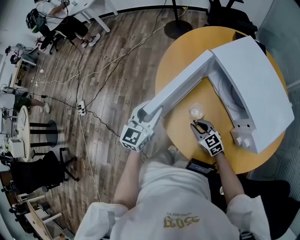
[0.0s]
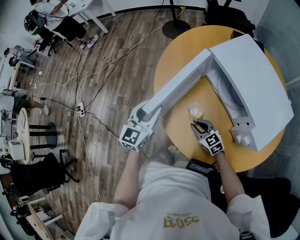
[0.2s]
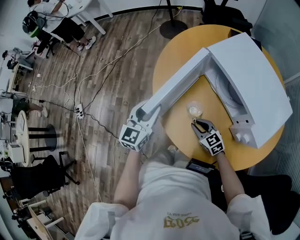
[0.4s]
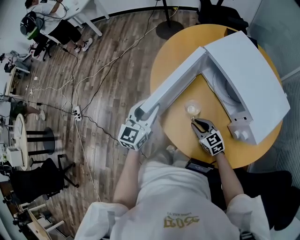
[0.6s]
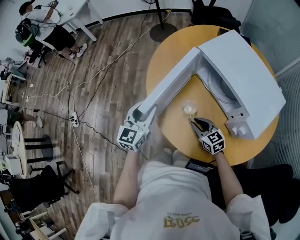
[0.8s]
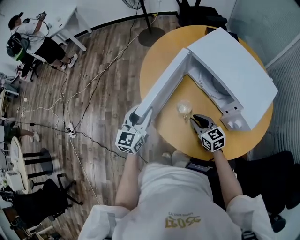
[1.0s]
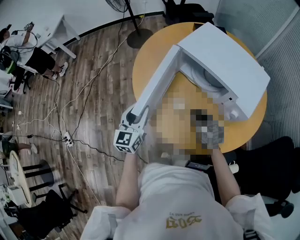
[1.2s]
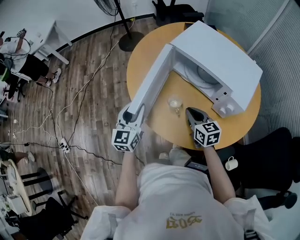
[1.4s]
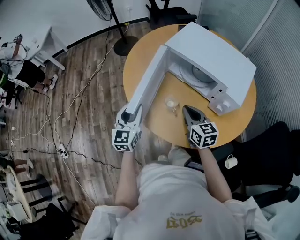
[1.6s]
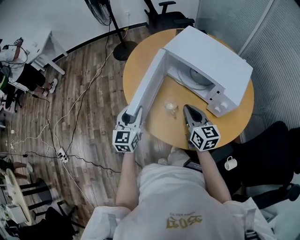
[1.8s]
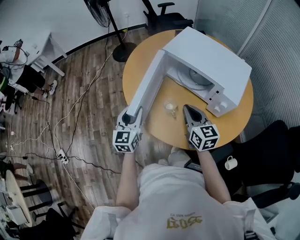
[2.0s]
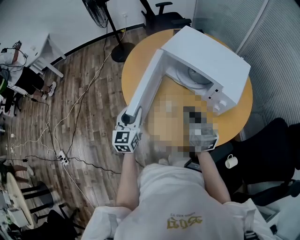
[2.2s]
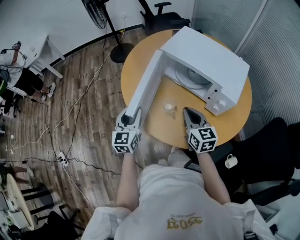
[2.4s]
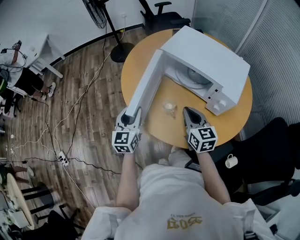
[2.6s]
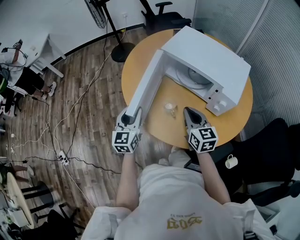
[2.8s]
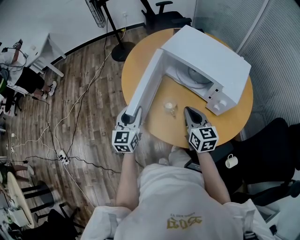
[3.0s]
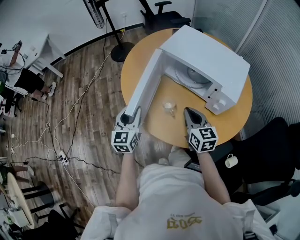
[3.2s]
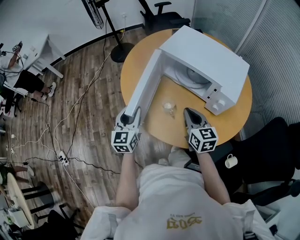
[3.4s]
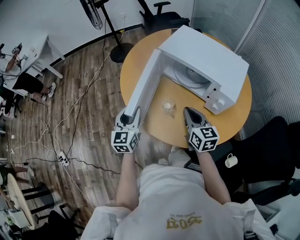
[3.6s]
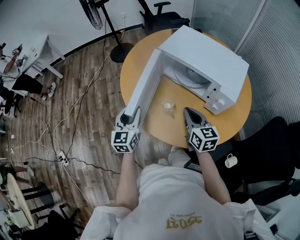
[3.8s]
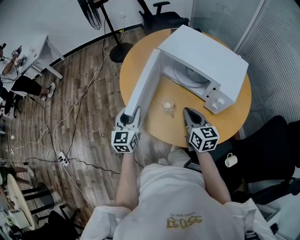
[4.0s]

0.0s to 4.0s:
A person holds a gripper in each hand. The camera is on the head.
0.0s to 1.4s: The right gripper moves upward, some 10 cm, and swivels roughly 40 degrees.
1.4s to 2.6s: The right gripper travels upward by roughly 5 cm.
2.6s to 4.0s: The grippers move only a little.

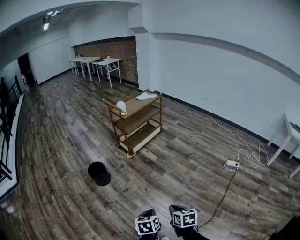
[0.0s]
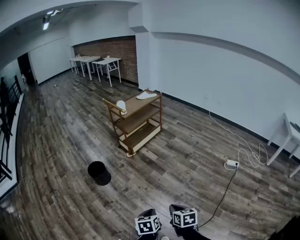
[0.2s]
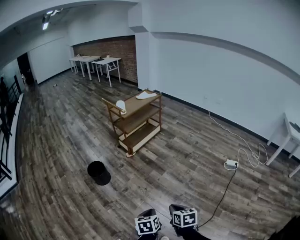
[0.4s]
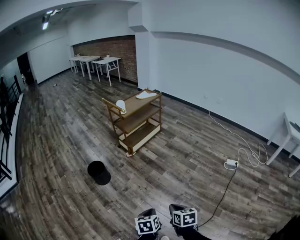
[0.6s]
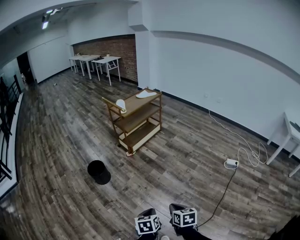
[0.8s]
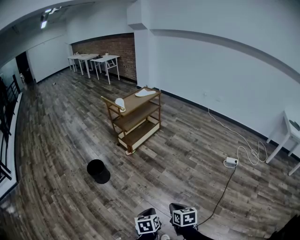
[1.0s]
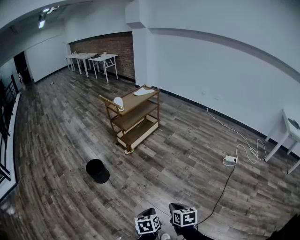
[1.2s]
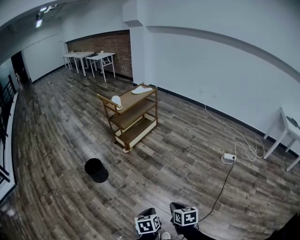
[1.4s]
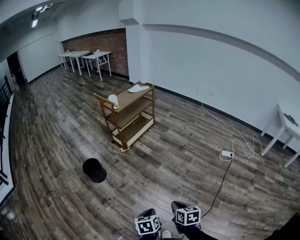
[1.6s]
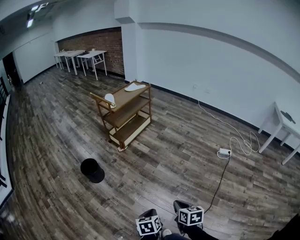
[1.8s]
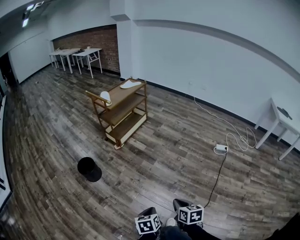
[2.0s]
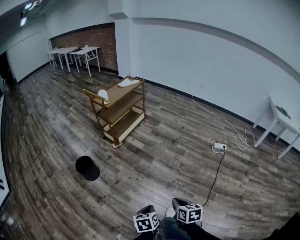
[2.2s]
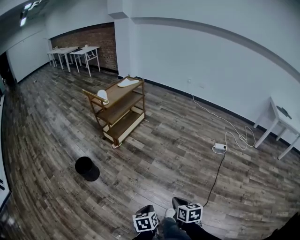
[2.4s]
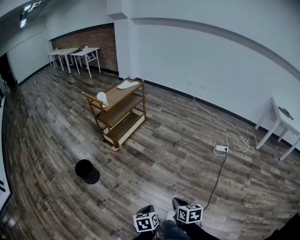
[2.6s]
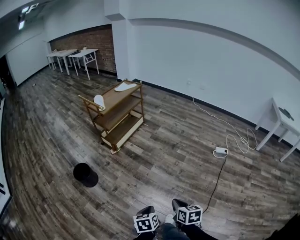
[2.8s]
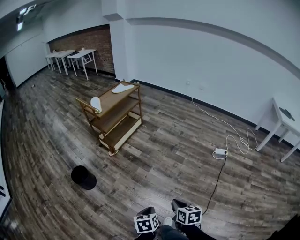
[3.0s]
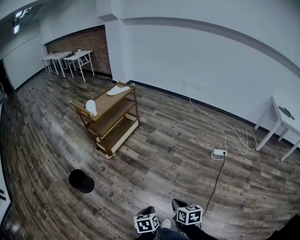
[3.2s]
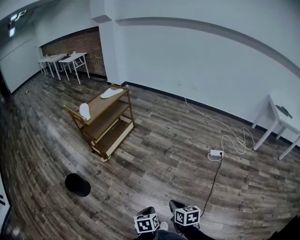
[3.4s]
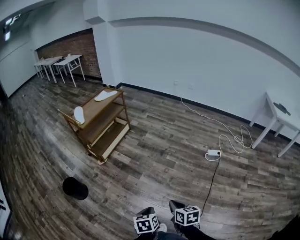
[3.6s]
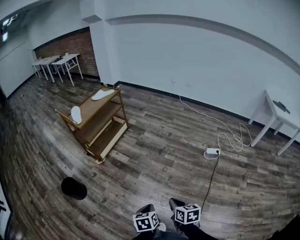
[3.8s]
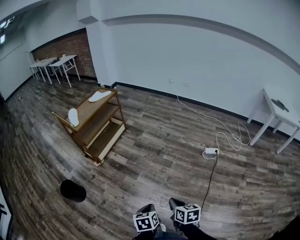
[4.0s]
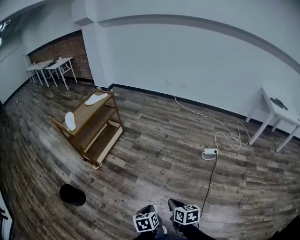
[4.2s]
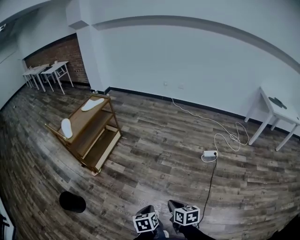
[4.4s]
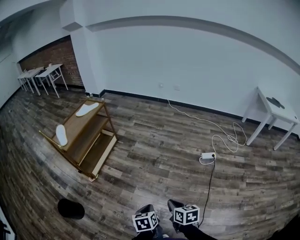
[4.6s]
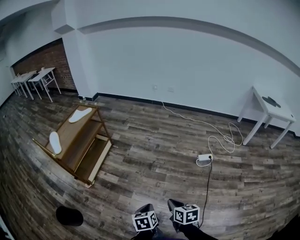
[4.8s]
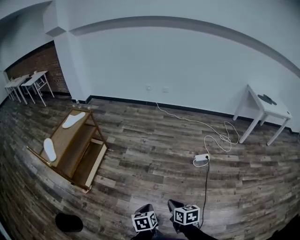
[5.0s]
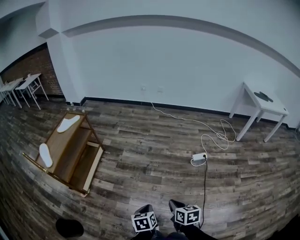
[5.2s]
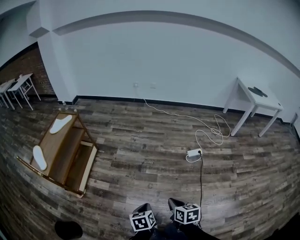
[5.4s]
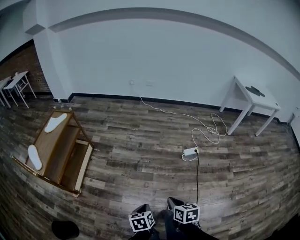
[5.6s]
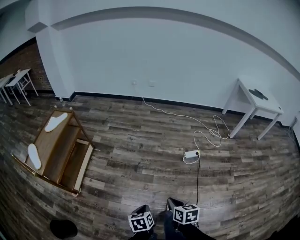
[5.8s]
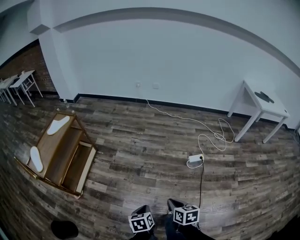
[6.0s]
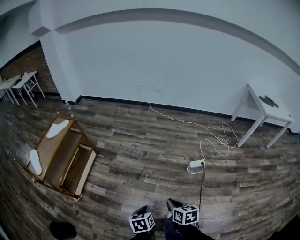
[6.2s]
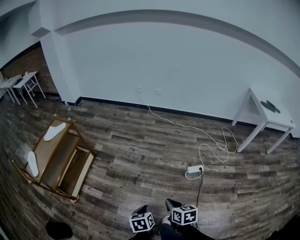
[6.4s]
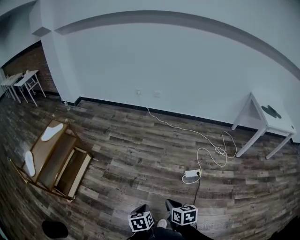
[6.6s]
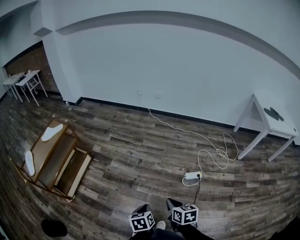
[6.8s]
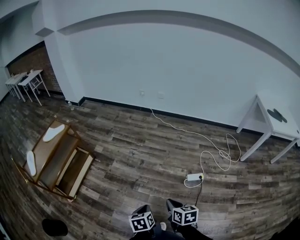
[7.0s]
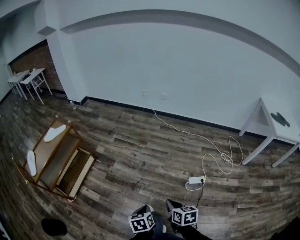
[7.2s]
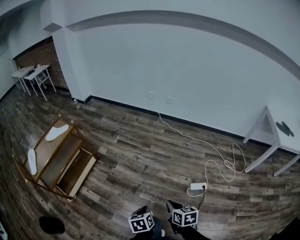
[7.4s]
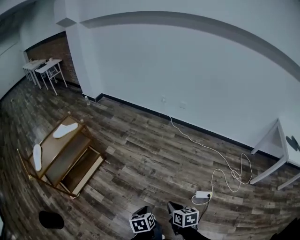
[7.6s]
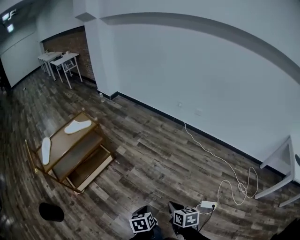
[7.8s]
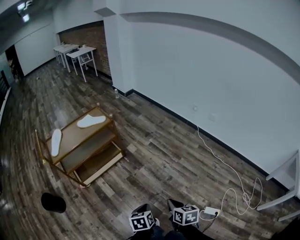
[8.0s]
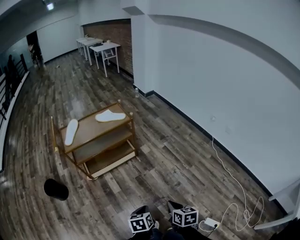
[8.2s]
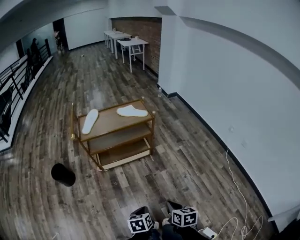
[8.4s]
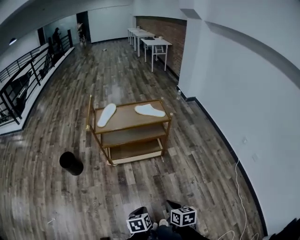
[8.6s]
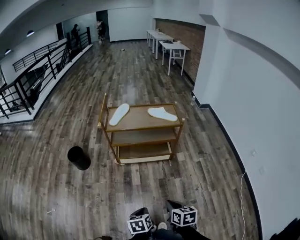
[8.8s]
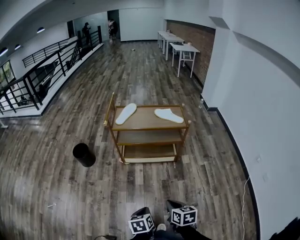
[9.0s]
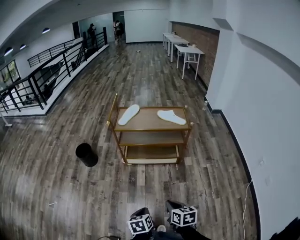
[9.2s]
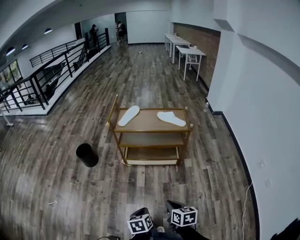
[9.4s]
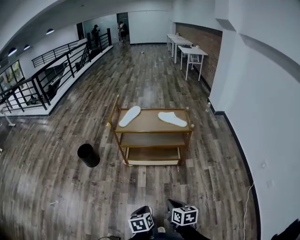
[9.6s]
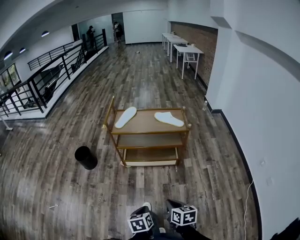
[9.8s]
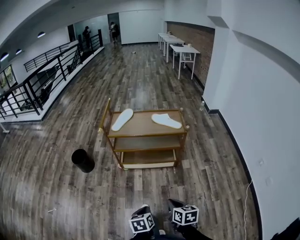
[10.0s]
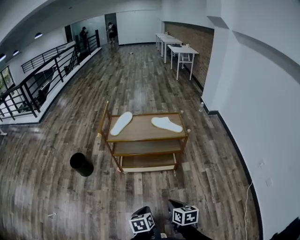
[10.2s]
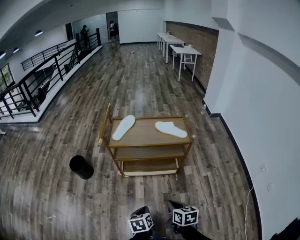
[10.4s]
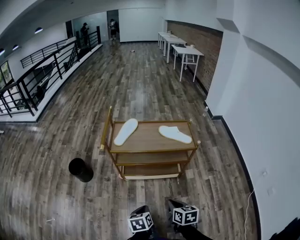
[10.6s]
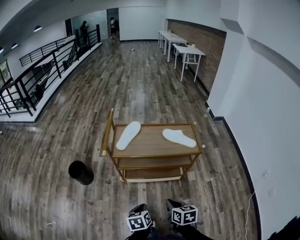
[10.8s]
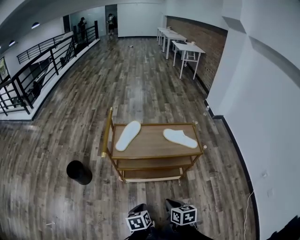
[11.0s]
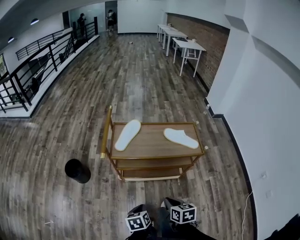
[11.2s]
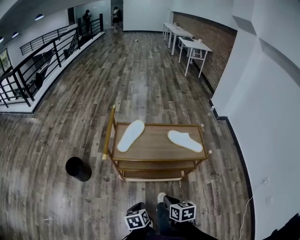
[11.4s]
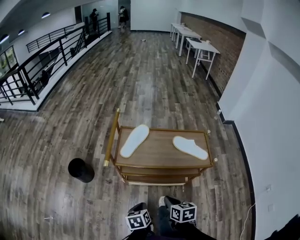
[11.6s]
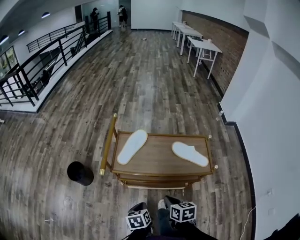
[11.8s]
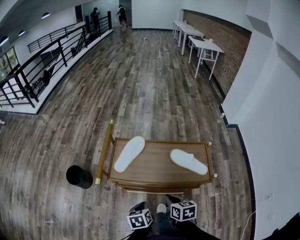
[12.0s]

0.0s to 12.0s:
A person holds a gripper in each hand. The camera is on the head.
0.0s to 1.6s: The grippers make only small movements.
1.6s to 3.0s: The two grippers go about 10 cm forward and to the right.
3.0s to 4.4s: Both grippers travel together forward and to the right, approximately 20 cm.
4.4s to 6.0s: Both grippers move forward, about 20 cm.
6.0s to 7.6s: The right gripper travels forward by approximately 30 cm, while the left gripper heads forward and to the right, covering some 30 cm.
7.6s to 9.0s: The left gripper moves about 20 cm, and changes its angle by approximately 60 degrees, while the right gripper shifts by about 30 cm, and rotates approximately 60 degrees.
9.0s to 10.4s: The grippers both shift forward by some 15 cm.
10.4s to 12.0s: The grippers both shift forward by roughly 35 cm.

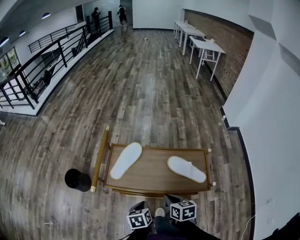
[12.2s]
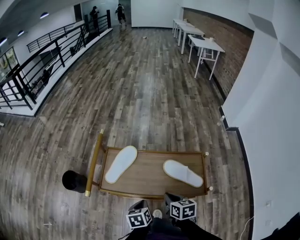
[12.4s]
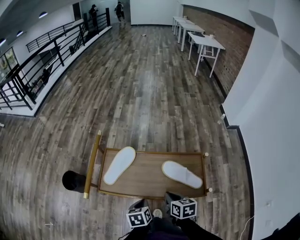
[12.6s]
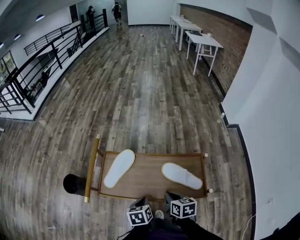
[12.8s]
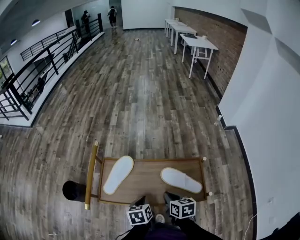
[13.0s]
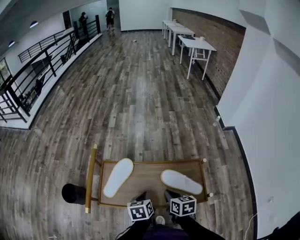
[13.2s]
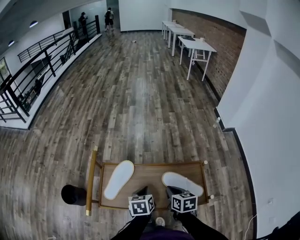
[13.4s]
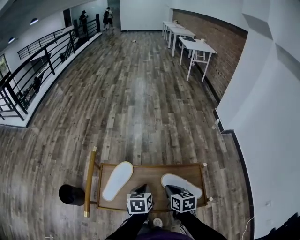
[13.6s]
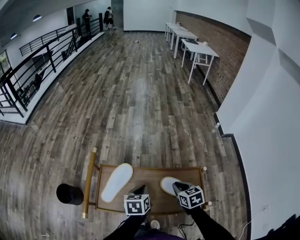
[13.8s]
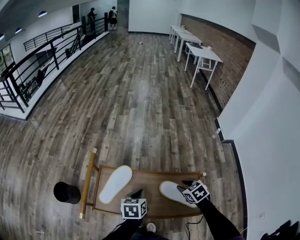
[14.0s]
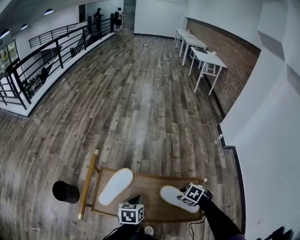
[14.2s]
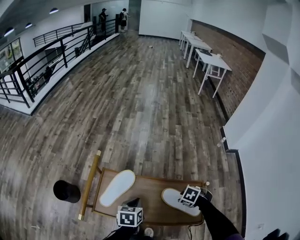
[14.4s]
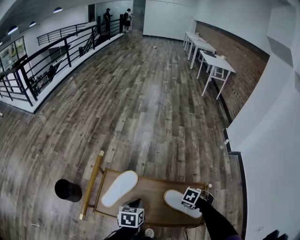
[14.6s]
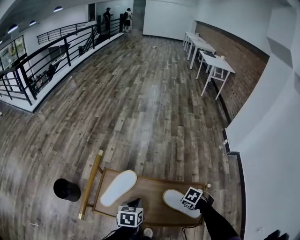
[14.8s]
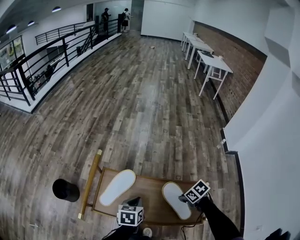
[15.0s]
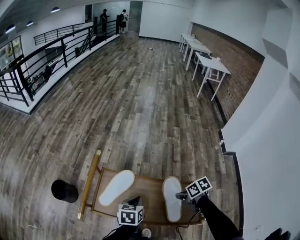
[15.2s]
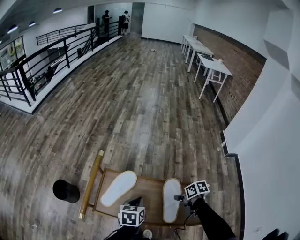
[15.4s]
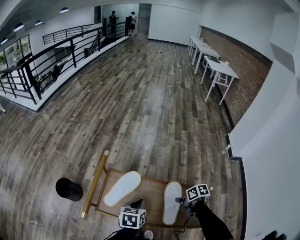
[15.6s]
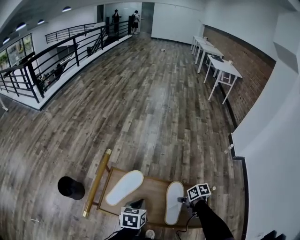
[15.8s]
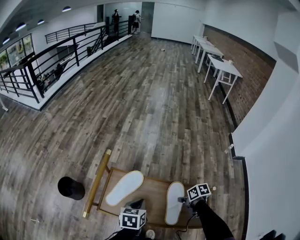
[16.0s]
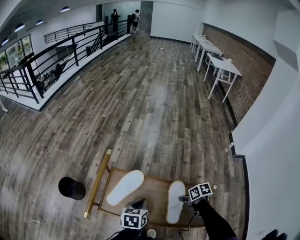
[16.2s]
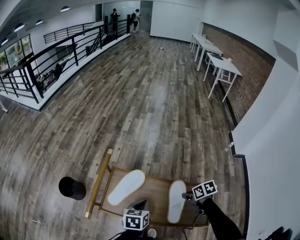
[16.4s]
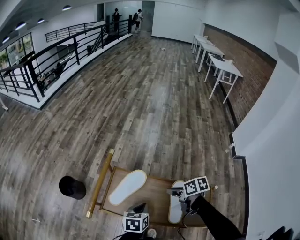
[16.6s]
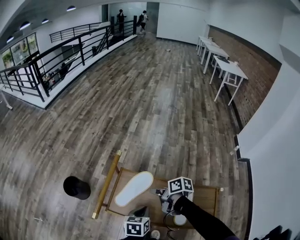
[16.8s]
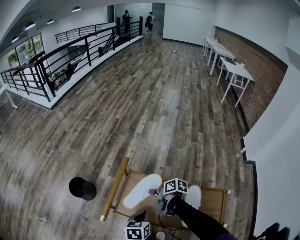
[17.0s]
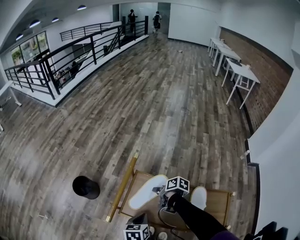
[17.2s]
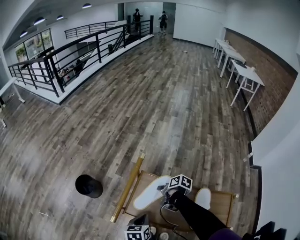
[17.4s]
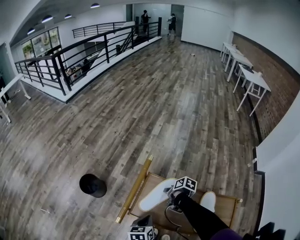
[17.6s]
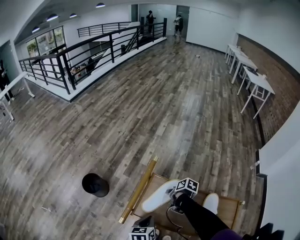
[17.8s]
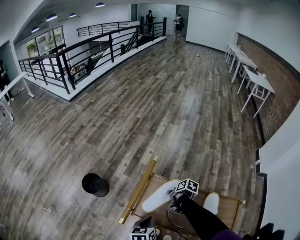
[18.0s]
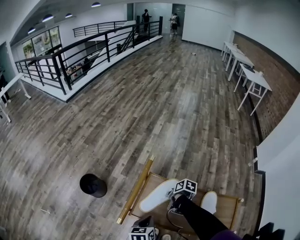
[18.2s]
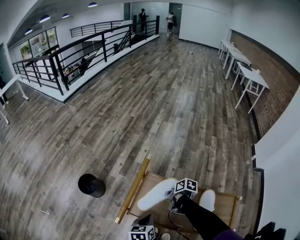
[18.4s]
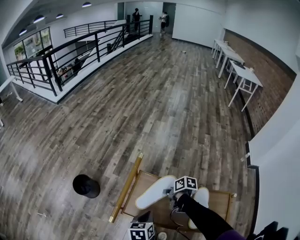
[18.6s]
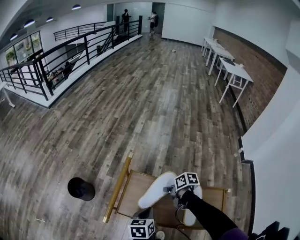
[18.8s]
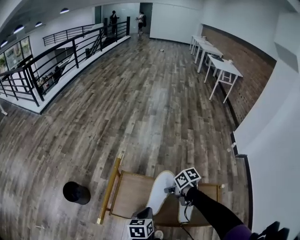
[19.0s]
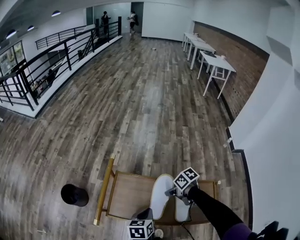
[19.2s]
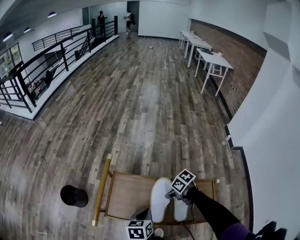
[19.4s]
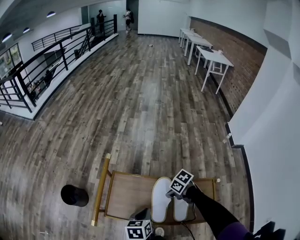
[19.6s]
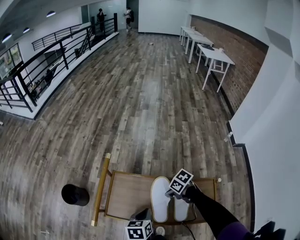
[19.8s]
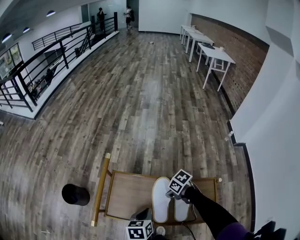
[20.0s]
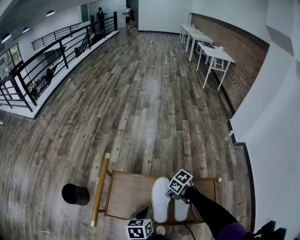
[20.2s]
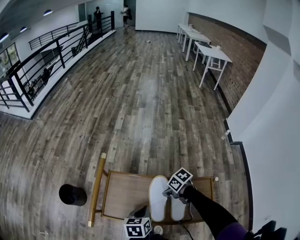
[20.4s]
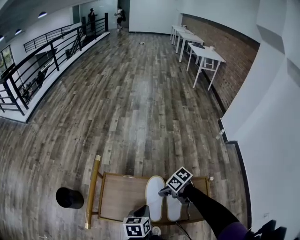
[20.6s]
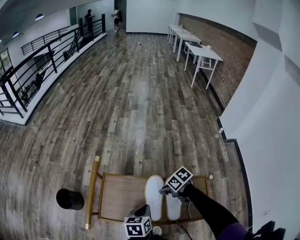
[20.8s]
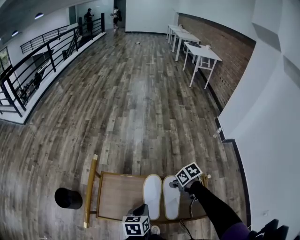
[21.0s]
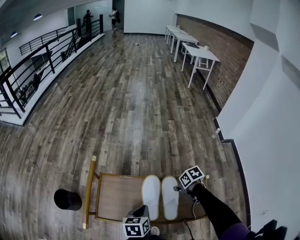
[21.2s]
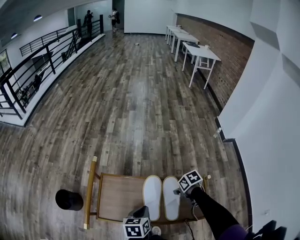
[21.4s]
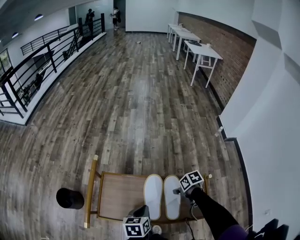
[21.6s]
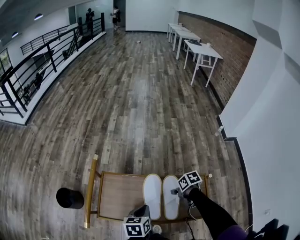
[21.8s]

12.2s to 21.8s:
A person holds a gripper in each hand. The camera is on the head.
12.2s to 13.8s: The right gripper travels forward and to the right by about 20 cm; the left gripper goes about 20 cm forward.
13.8s to 15.4s: The right gripper heads downward, covering about 5 cm, swivels approximately 40 degrees, and opens, then closes again.
15.4s to 17.0s: The right gripper goes about 25 cm to the left and forward, and opens. Meanwhile the left gripper moves to the left, approximately 10 cm.
17.0s to 18.6s: The right gripper closes up.
18.6s to 20.2s: The left gripper shifts by approximately 10 cm. The right gripper ends up roughly 15 cm from where it was, and swivels approximately 40 degrees.
20.2s to 21.8s: The right gripper shifts by roughly 10 cm, and rotates roughly 30 degrees.
